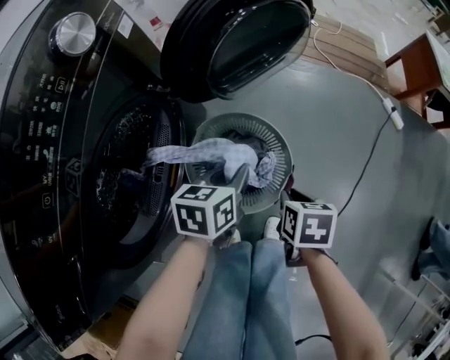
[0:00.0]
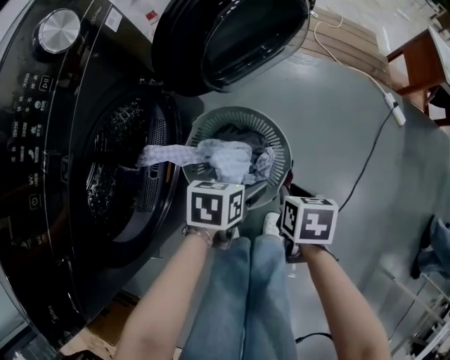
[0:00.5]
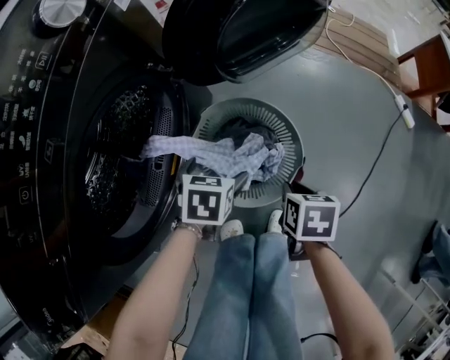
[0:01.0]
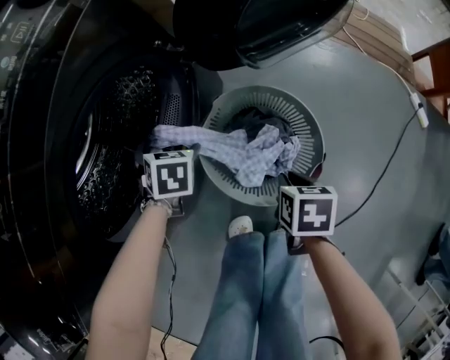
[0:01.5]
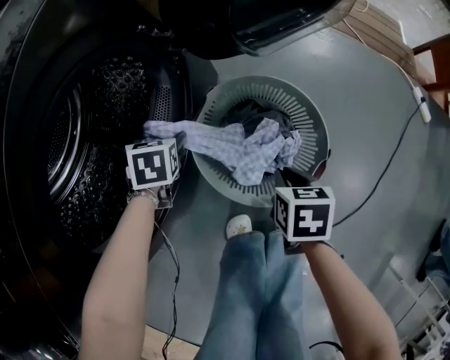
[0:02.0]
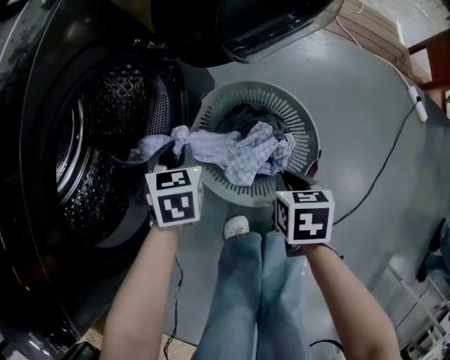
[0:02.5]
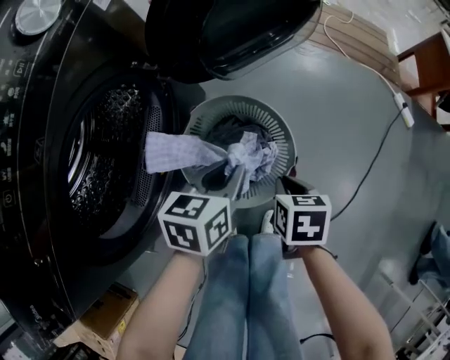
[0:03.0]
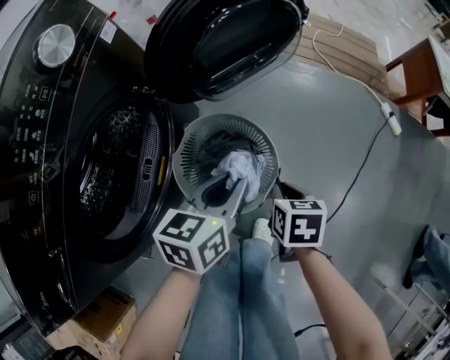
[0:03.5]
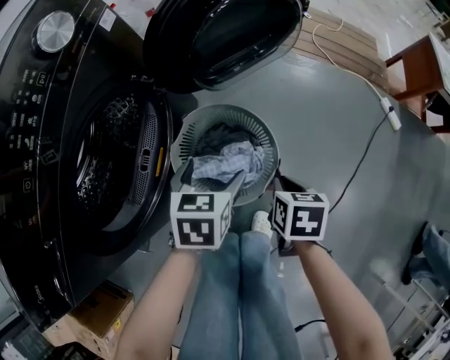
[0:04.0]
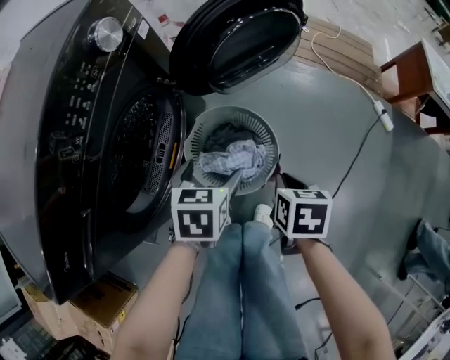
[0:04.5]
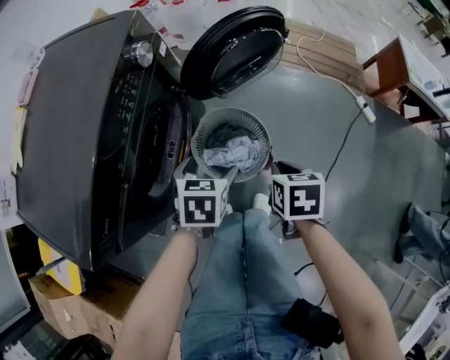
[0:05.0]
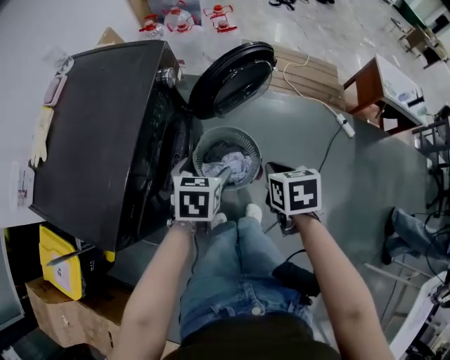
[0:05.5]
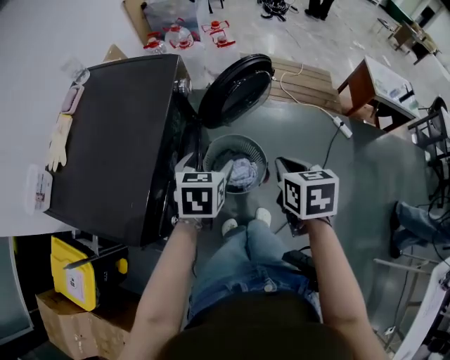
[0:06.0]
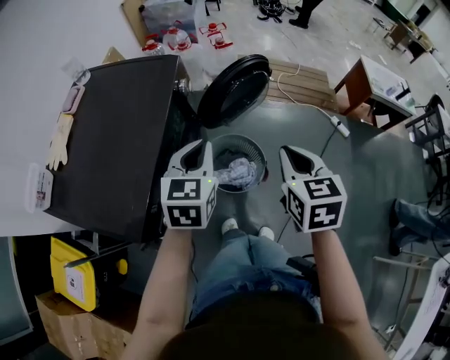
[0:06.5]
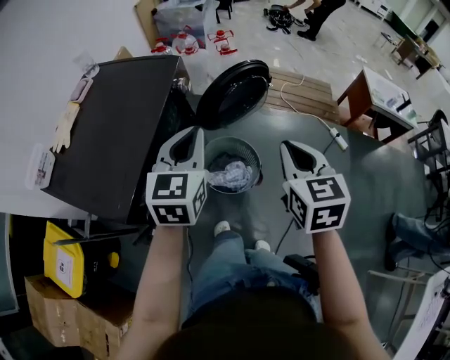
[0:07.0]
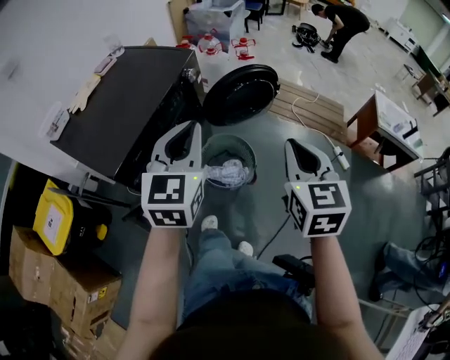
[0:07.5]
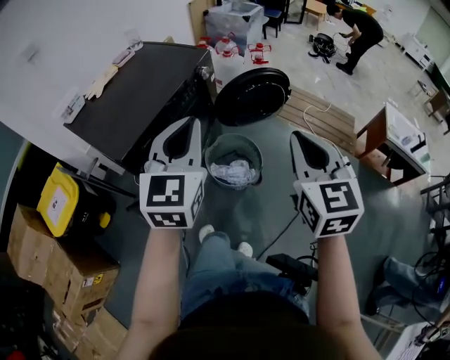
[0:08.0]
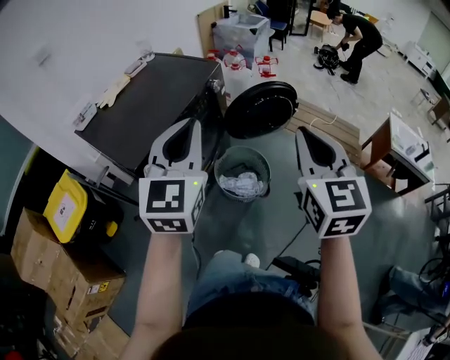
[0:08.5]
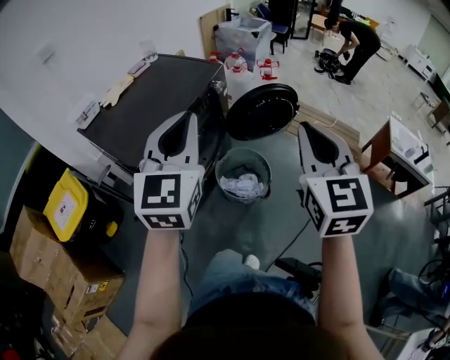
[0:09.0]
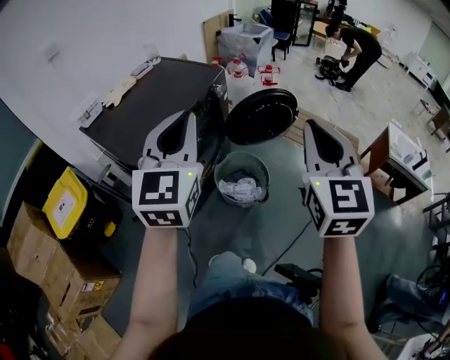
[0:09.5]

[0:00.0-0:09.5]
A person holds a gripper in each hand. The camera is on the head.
0.0 to 2.0 s: The right gripper travels downward by approximately 10 cm. The left gripper shifts by about 30 cm, changes its angle by some 40 degrees, and opens up.
2.0 to 4.0 s: The right gripper changes place by roughly 15 cm. Meanwhile the left gripper shifts by about 30 cm, rotates some 20 degrees, and closes, then reopens.
4.0 to 5.5 s: The two grippers go some 30 cm upward.
5.5 to 7.5 s: Both grippers move upward and backward, some 30 cm. The right gripper angles its fingers upward, by approximately 40 degrees. Meanwhile the left gripper tilts its fingers some 40 degrees upward, and closes.
7.5 to 9.5 s: The left gripper is displaced upward and backward by about 10 cm. The right gripper travels upward by roughly 10 cm.

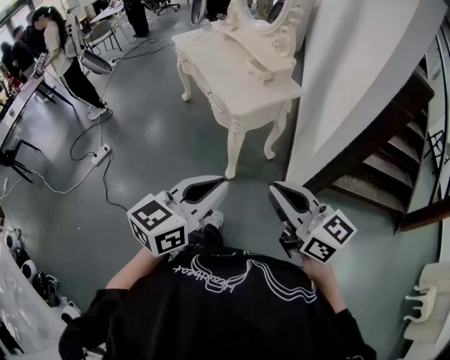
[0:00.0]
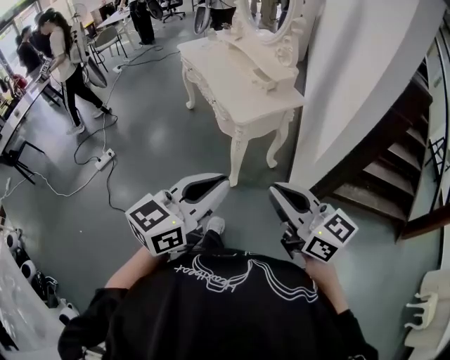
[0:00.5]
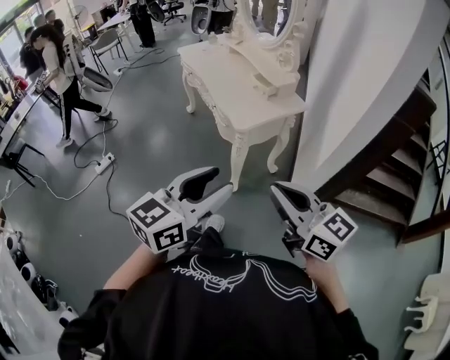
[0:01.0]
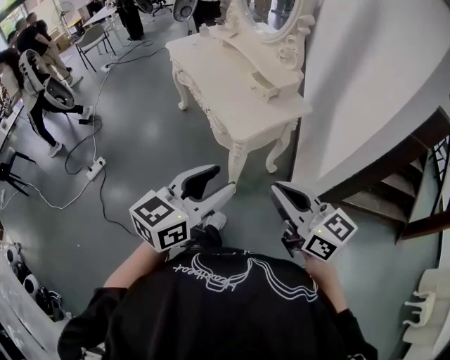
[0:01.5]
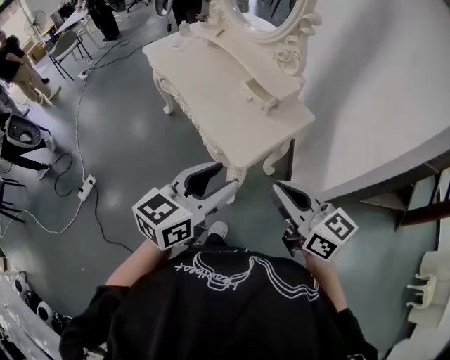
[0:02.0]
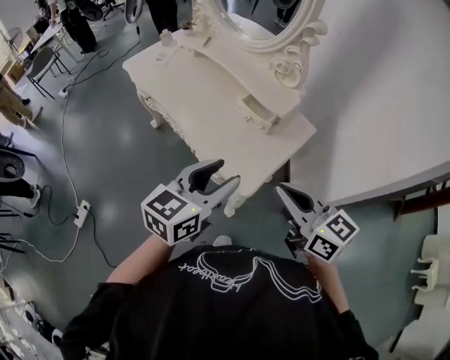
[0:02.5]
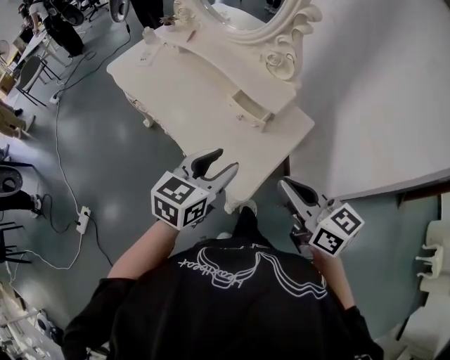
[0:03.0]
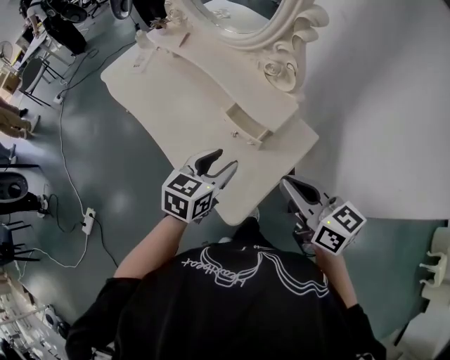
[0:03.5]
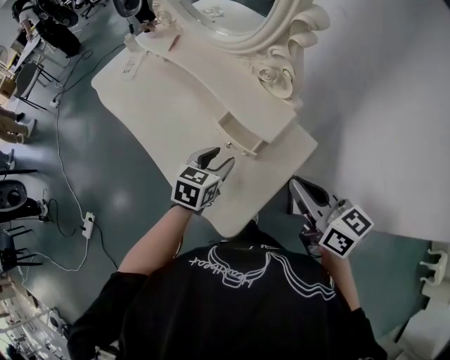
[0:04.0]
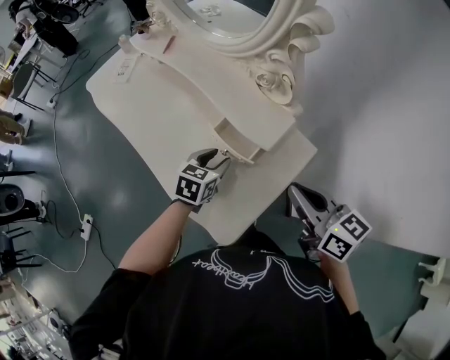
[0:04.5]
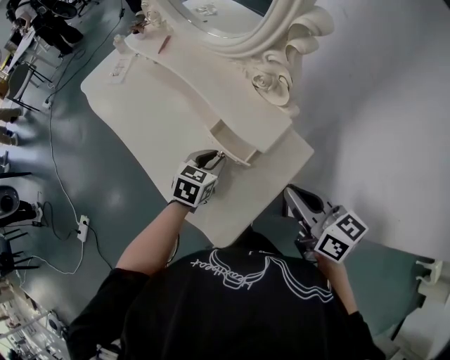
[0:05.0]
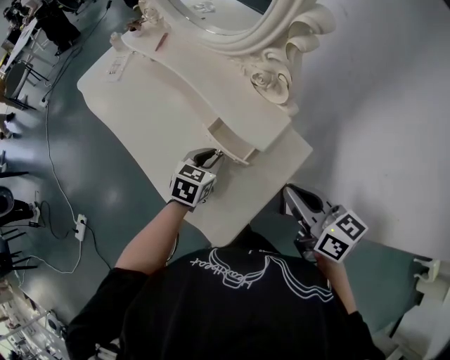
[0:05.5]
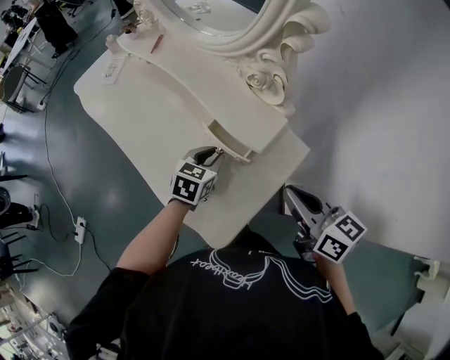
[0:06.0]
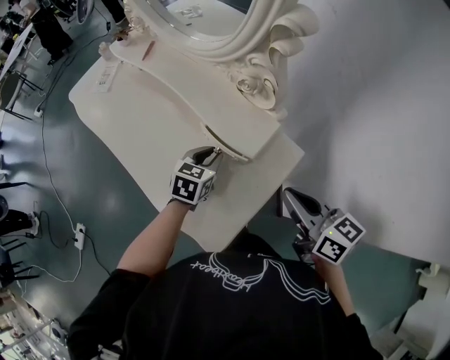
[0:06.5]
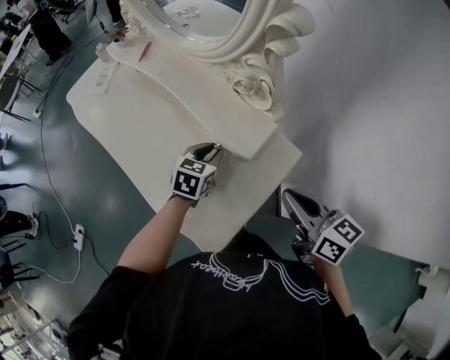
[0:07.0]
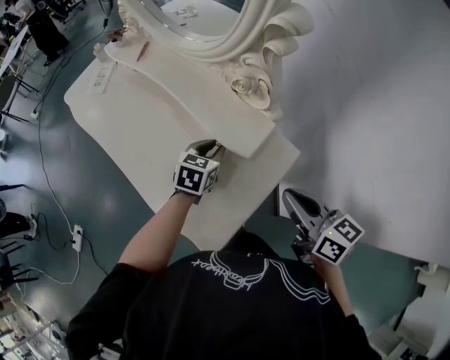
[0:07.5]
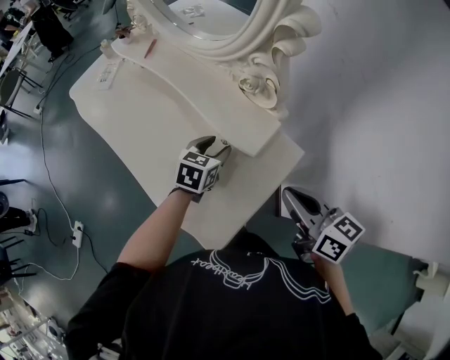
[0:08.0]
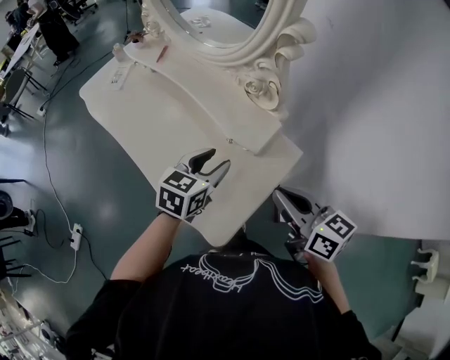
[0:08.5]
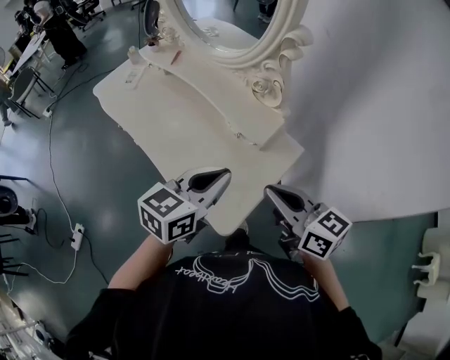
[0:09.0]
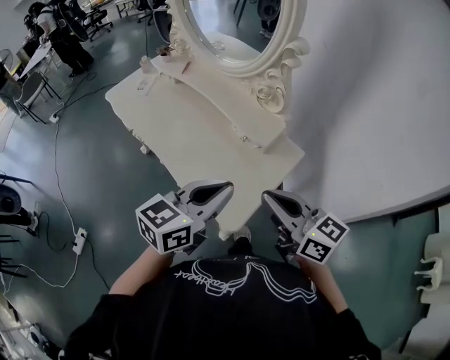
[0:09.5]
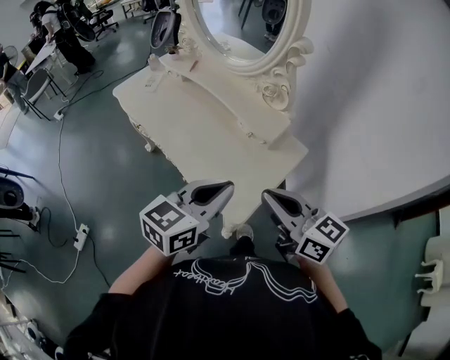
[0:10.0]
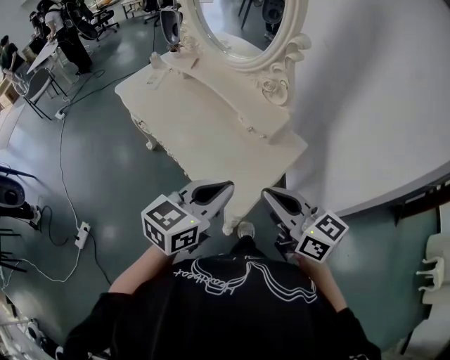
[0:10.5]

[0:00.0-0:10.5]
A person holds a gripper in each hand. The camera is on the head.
0.0 to 2.0 s: The grippers both shift forward by roughly 30 cm. The left gripper opens up.
2.0 to 4.0 s: The right gripper is displaced forward by approximately 30 cm. The left gripper moves forward and downward, some 40 cm, and changes its angle by some 30 degrees.
4.0 to 6.5 s: The right gripper moves approximately 5 cm. Meanwhile the left gripper travels forward by about 5 cm, and closes.
6.5 to 8.5 s: The left gripper shifts some 10 cm upward and backward, and opens, while the right gripper moves approximately 5 cm.
8.5 to 10.5 s: The right gripper moves backward, to the left and upward, about 20 cm; the left gripper moves backward and upward, some 25 cm, and closes up.

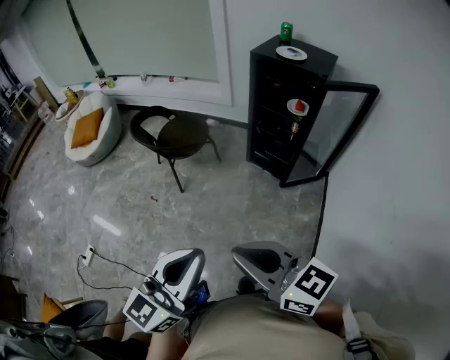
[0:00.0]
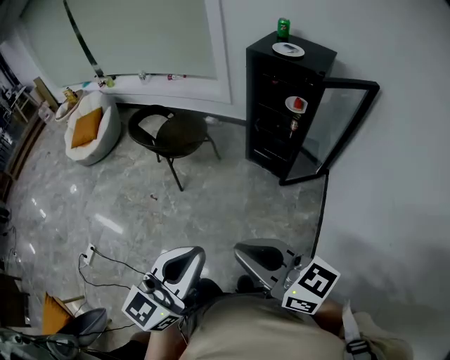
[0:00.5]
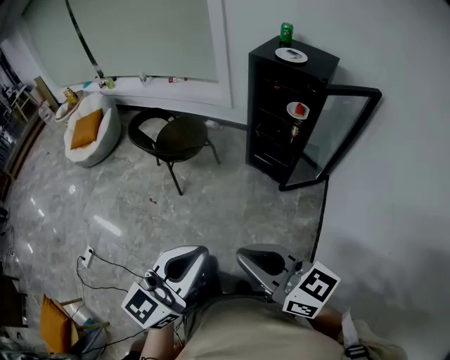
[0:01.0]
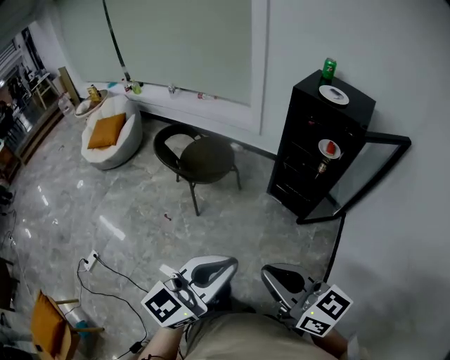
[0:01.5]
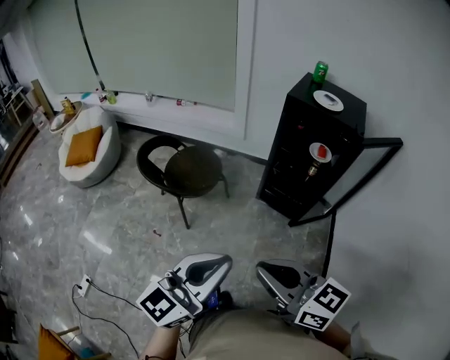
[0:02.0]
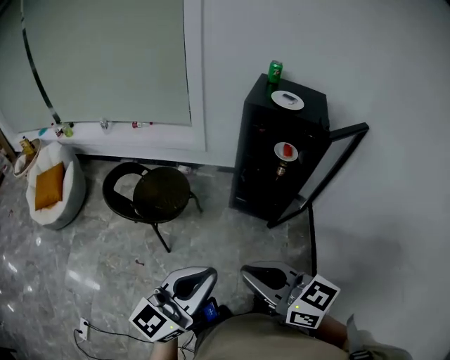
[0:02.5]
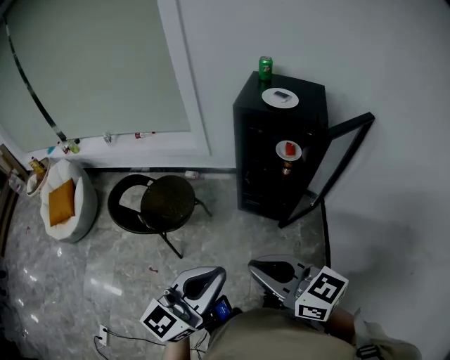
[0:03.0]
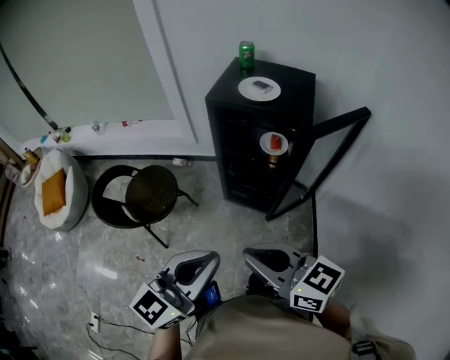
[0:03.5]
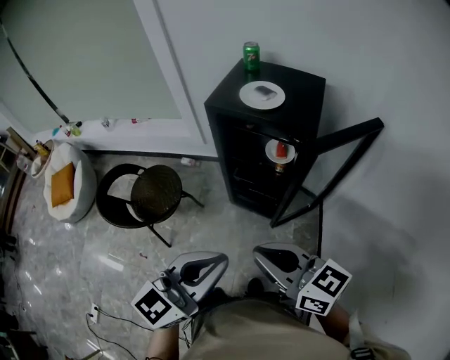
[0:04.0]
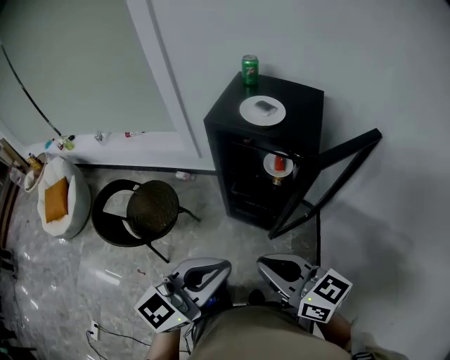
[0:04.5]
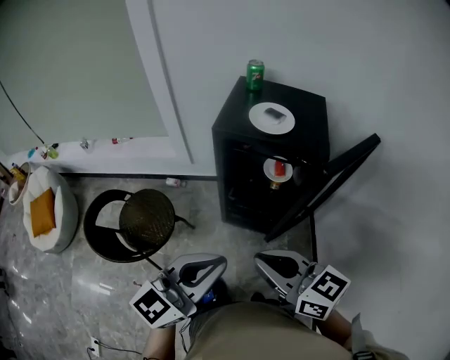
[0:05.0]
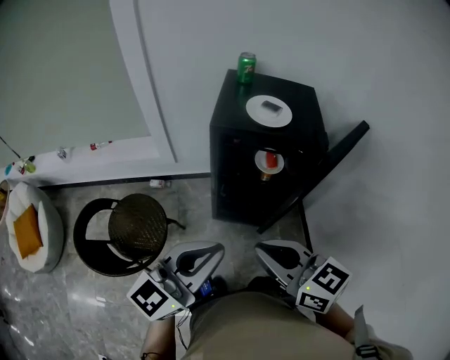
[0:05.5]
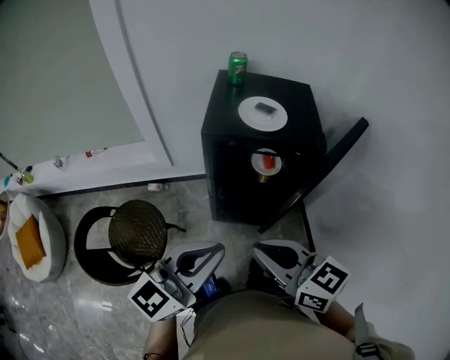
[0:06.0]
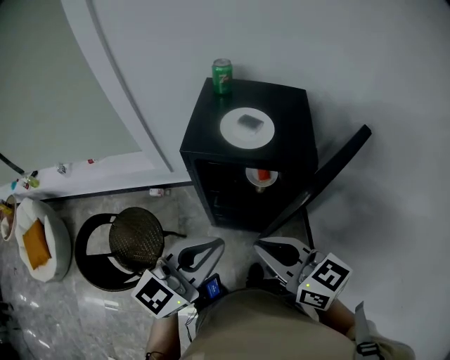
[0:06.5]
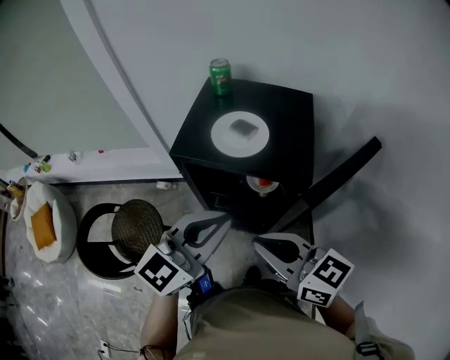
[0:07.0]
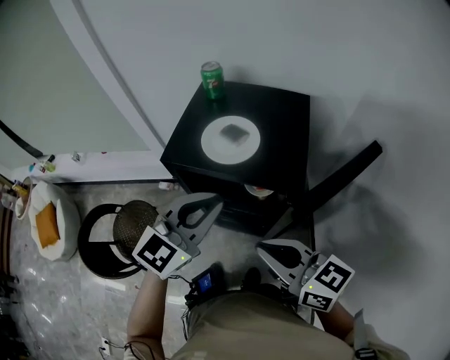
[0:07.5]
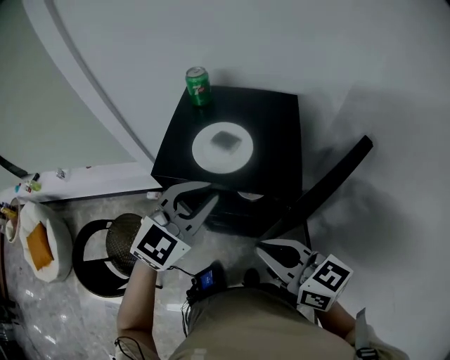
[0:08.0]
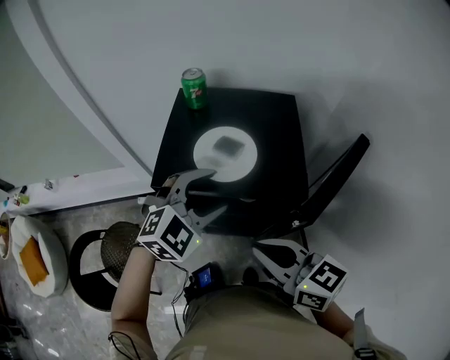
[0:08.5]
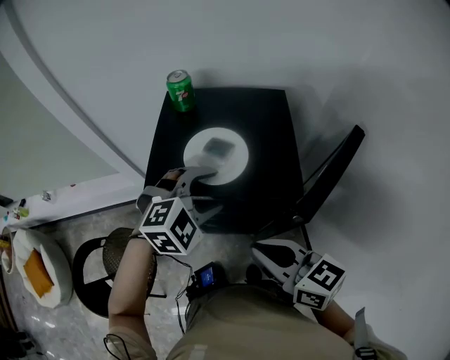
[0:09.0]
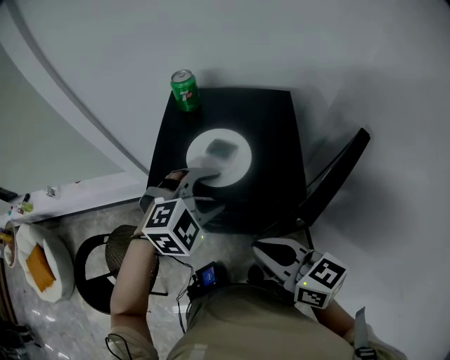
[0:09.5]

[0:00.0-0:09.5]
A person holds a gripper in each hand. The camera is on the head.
0.0 to 2.0 s: Both grippers move forward, about 20 cm.
2.0 to 4.0 s: Both grippers travel together to the right and forward, roughly 30 cm.
4.0 to 5.5 s: The two grippers go roughly 15 cm to the left and forward. The right gripper rotates roughly 20 degrees.
5.5 to 7.5 s: The right gripper heads to the right and forward, covering roughly 20 cm, while the left gripper shifts some 30 cm forward and to the right, and swivels some 30 degrees.
7.5 to 9.5 s: The right gripper ends up about 5 cm from where it was, while the left gripper is displaced forward and downward by roughly 10 cm, angles its fingers downward, by roughly 30 degrees, and opens up.
